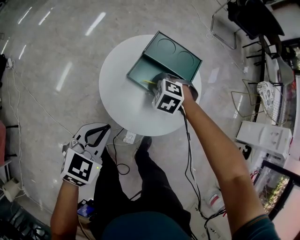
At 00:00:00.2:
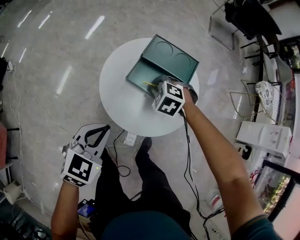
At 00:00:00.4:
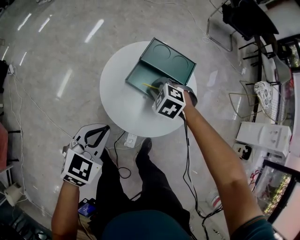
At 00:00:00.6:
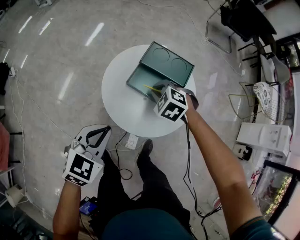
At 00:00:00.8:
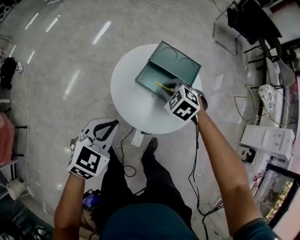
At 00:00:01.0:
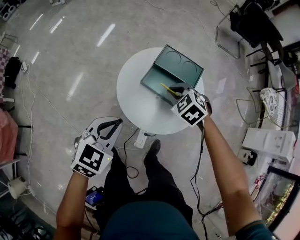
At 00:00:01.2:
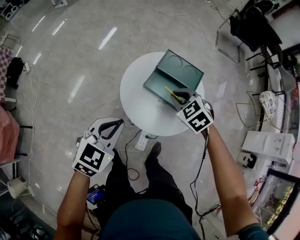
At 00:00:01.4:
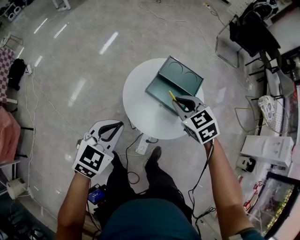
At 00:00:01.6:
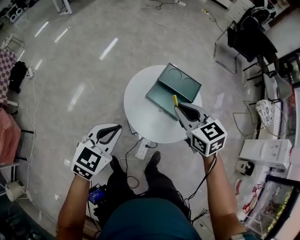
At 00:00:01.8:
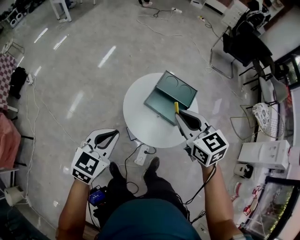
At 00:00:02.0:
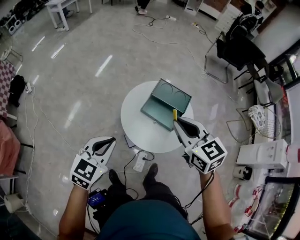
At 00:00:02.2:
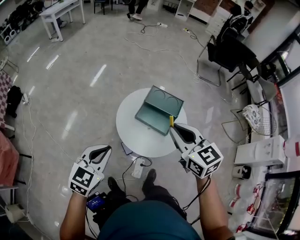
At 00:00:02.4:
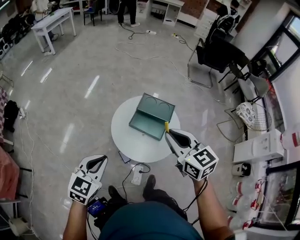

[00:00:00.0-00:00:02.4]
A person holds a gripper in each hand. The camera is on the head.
00:00:00.0 to 00:00:01.2: The left gripper is displaced upward by roughly 10 cm; the right gripper shifts some 15 cm upward, and turns by roughly 30 degrees.
00:00:01.2 to 00:00:02.4: The right gripper travels upward and backward by approximately 30 cm, and tilts its fingers about 30 degrees upward; the left gripper goes approximately 15 cm upward and backward.

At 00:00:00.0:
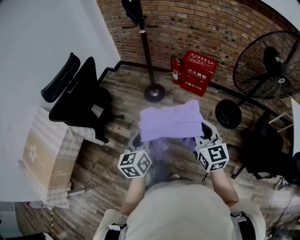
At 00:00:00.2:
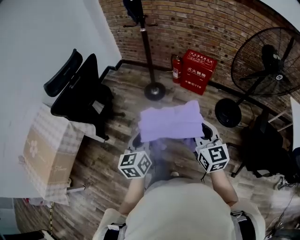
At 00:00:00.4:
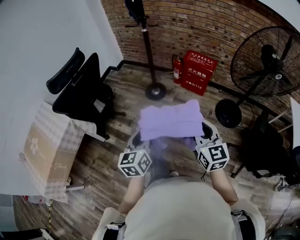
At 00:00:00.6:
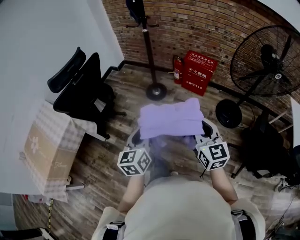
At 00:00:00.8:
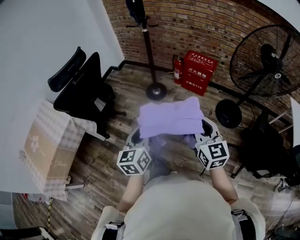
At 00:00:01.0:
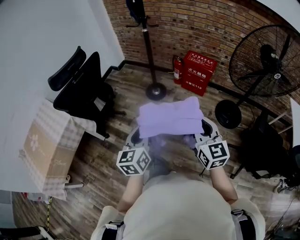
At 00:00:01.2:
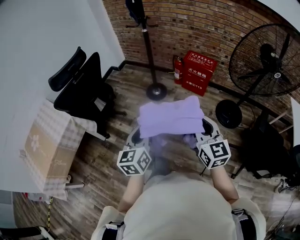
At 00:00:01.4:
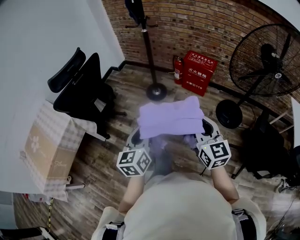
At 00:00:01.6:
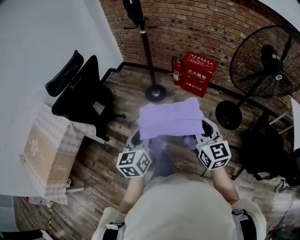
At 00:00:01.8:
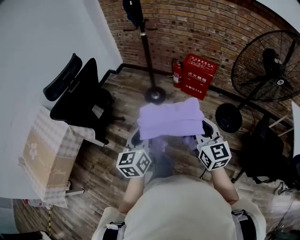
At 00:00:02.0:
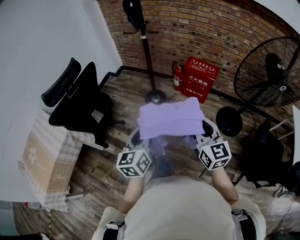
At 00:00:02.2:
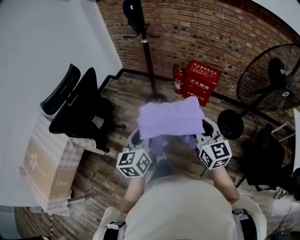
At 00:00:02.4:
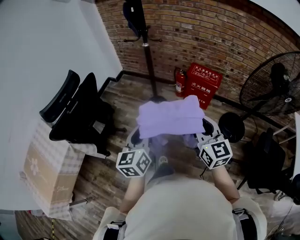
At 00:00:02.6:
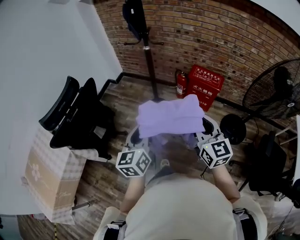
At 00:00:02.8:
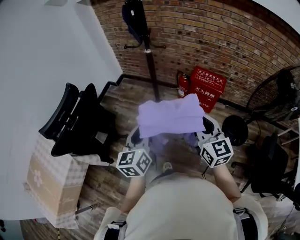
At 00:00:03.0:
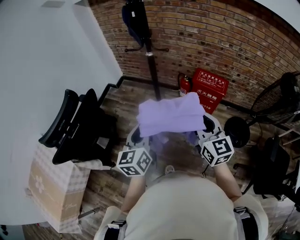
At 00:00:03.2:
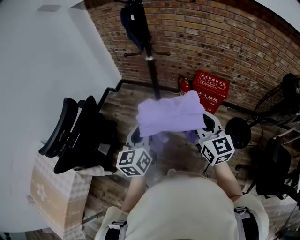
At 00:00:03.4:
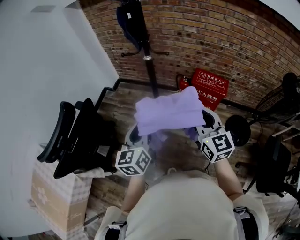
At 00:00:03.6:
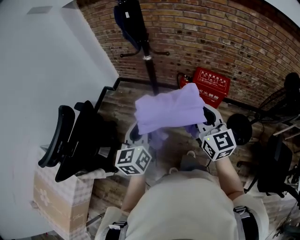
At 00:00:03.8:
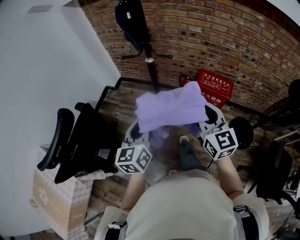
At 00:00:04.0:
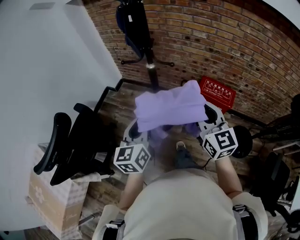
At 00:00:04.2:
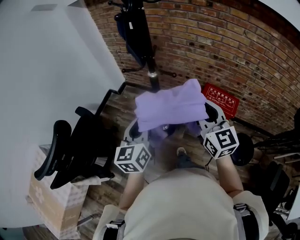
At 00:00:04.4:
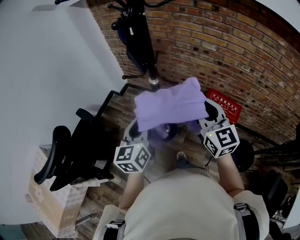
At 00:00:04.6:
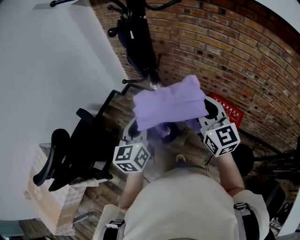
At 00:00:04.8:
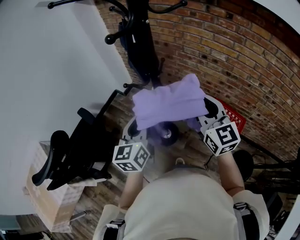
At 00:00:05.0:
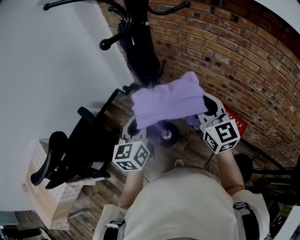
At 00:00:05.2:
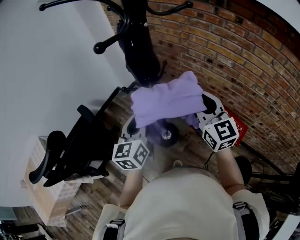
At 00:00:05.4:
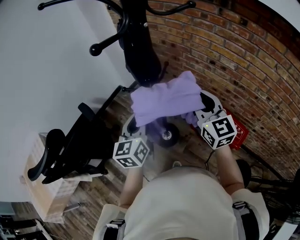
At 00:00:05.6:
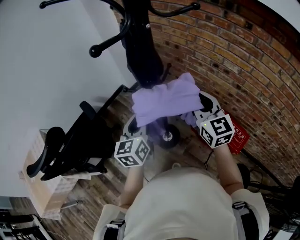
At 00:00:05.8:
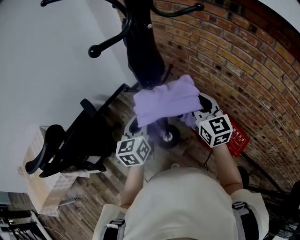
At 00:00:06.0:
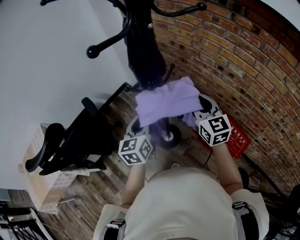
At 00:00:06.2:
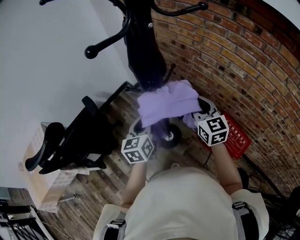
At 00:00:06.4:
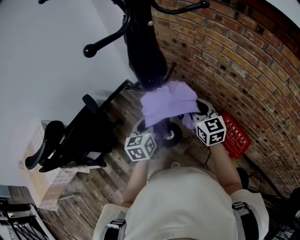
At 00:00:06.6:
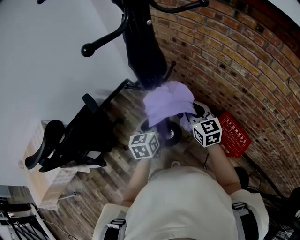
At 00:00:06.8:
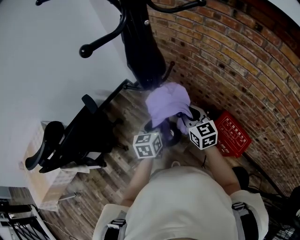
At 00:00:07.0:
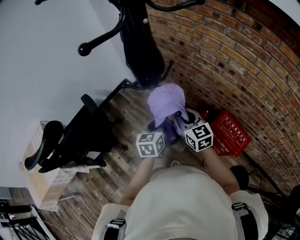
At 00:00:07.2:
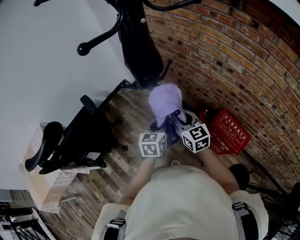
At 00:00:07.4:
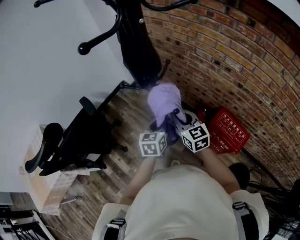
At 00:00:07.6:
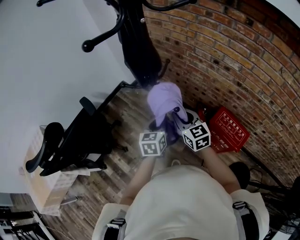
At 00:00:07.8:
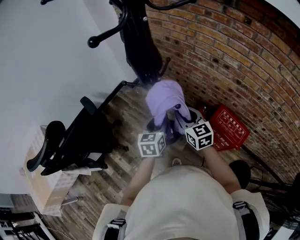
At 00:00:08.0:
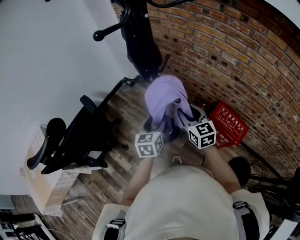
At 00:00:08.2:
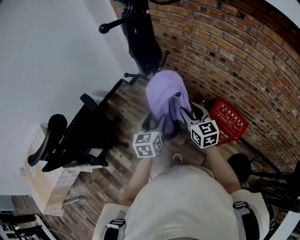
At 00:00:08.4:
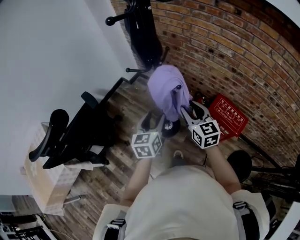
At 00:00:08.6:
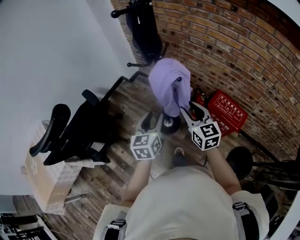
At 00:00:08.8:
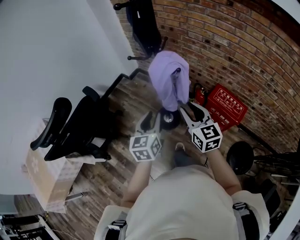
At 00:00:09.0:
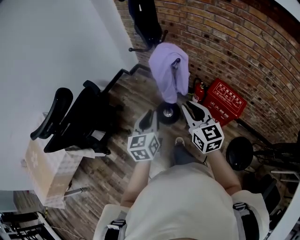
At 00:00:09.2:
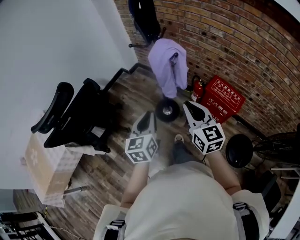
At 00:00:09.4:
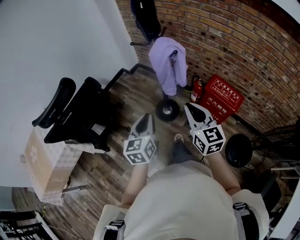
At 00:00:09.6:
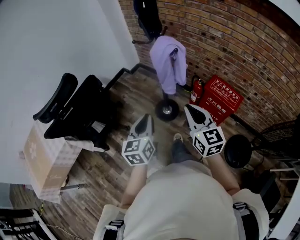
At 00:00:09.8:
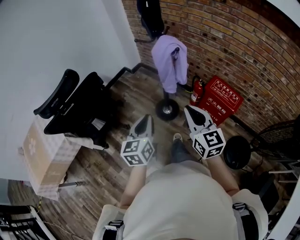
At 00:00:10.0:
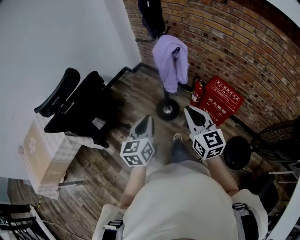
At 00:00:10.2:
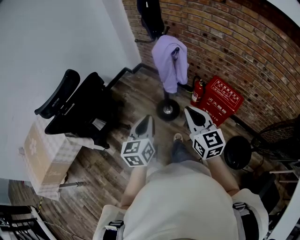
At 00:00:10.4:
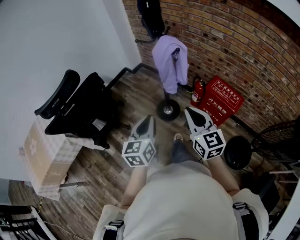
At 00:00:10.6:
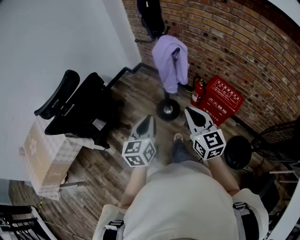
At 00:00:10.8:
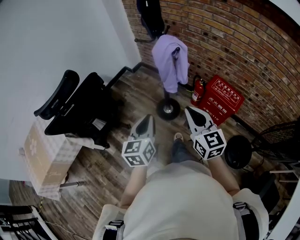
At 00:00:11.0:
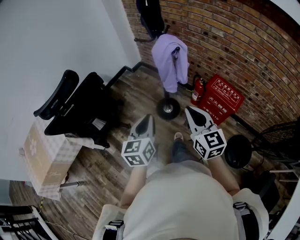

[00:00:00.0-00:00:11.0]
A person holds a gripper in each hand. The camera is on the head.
00:00:01.6 to 00:00:03.2: Both grippers move forward, approximately 35 cm.
00:00:03.2 to 00:00:04.8: Both grippers travel together forward, about 30 cm.
00:00:04.8 to 00:00:06.2: The left gripper is displaced downward and forward by some 10 cm. The right gripper travels forward and downward by about 15 cm.
00:00:06.2 to 00:00:07.8: The left gripper travels to the right and downward by roughly 10 cm, and opens; the right gripper is displaced downward and backward by roughly 10 cm.
00:00:07.8 to 00:00:09.4: The grippers both shift backward by about 25 cm. The right gripper closes up. Meanwhile the left gripper closes up.
00:00:09.4 to 00:00:11.0: The grippers move only a little.

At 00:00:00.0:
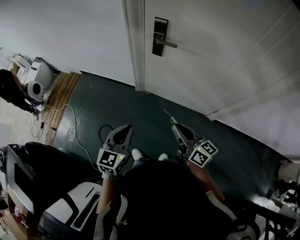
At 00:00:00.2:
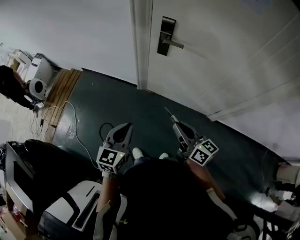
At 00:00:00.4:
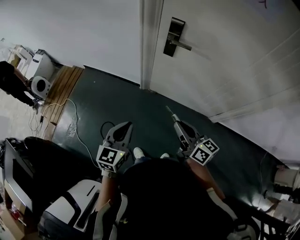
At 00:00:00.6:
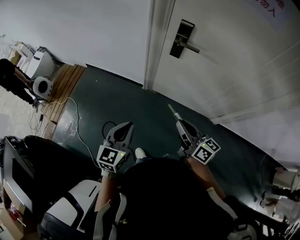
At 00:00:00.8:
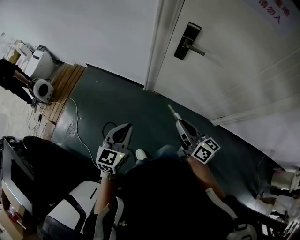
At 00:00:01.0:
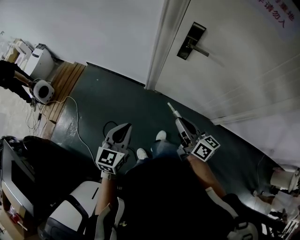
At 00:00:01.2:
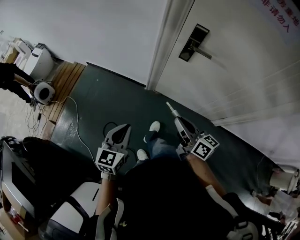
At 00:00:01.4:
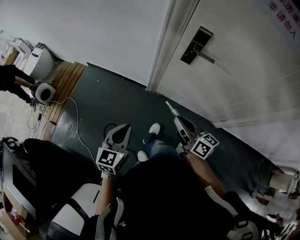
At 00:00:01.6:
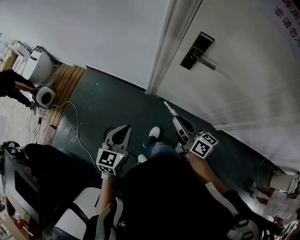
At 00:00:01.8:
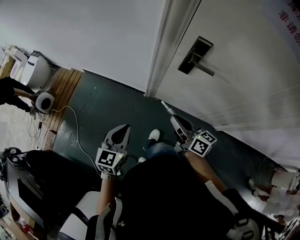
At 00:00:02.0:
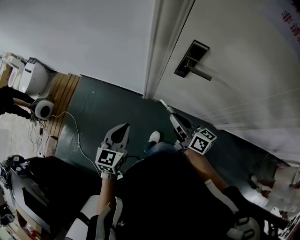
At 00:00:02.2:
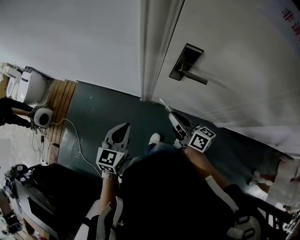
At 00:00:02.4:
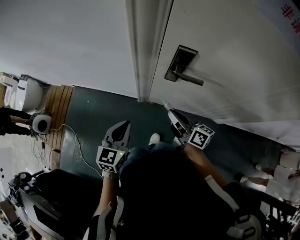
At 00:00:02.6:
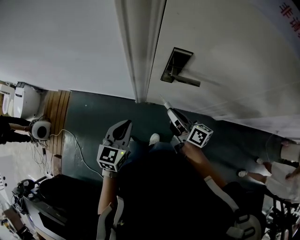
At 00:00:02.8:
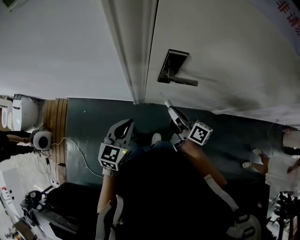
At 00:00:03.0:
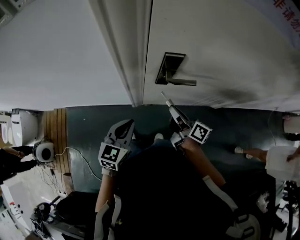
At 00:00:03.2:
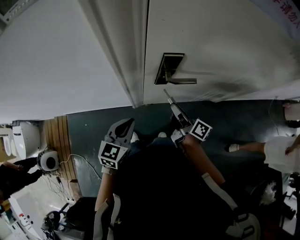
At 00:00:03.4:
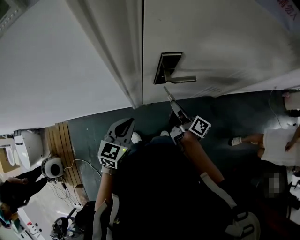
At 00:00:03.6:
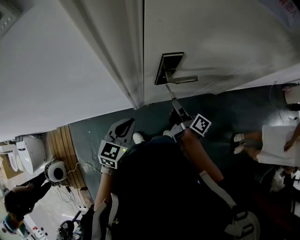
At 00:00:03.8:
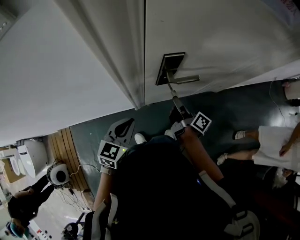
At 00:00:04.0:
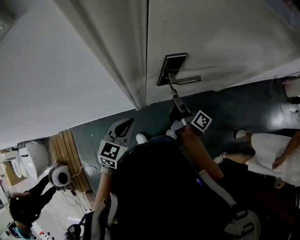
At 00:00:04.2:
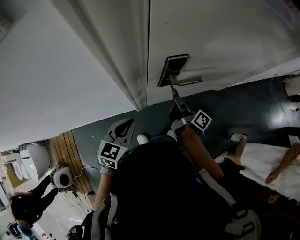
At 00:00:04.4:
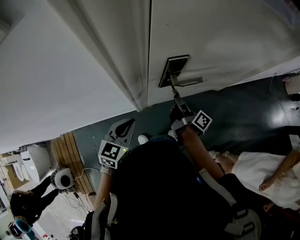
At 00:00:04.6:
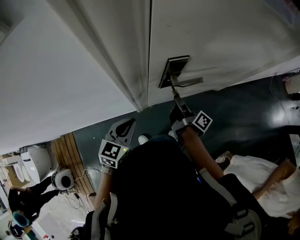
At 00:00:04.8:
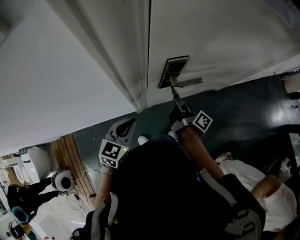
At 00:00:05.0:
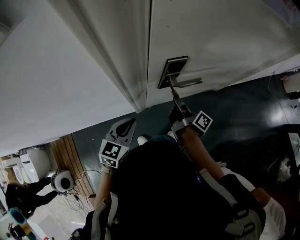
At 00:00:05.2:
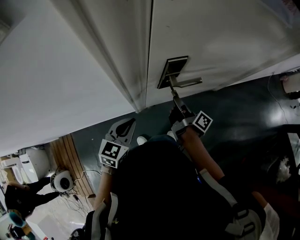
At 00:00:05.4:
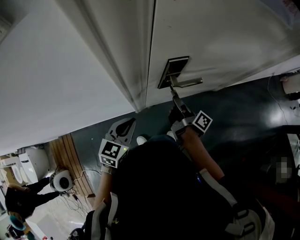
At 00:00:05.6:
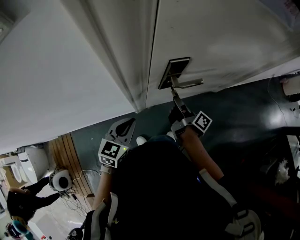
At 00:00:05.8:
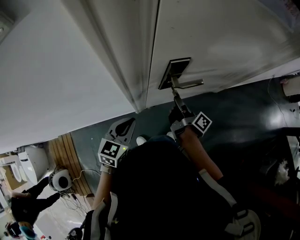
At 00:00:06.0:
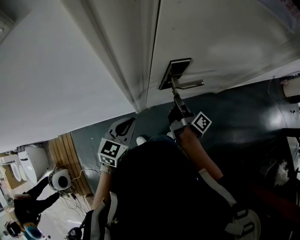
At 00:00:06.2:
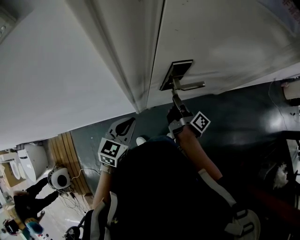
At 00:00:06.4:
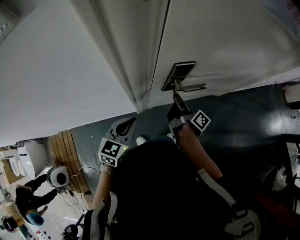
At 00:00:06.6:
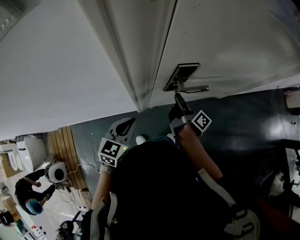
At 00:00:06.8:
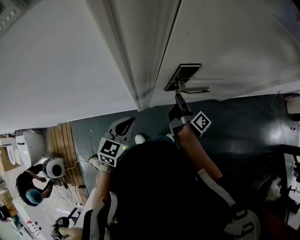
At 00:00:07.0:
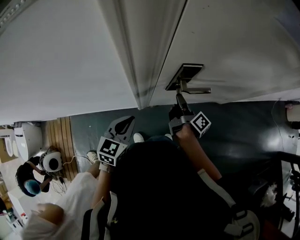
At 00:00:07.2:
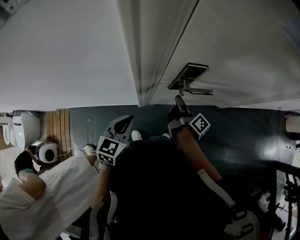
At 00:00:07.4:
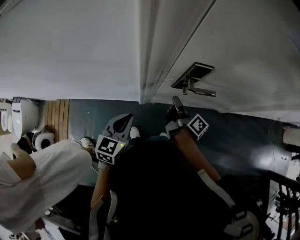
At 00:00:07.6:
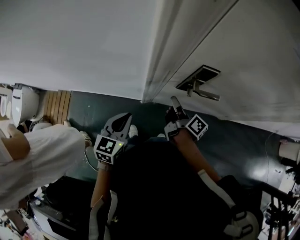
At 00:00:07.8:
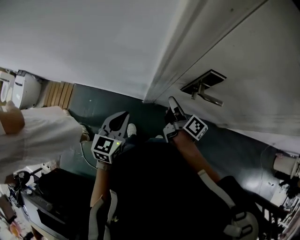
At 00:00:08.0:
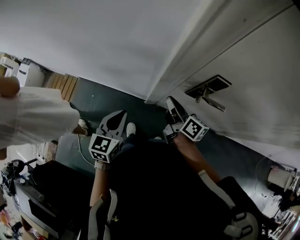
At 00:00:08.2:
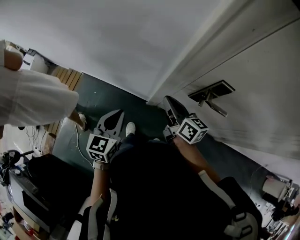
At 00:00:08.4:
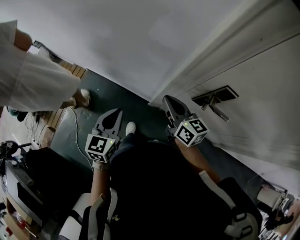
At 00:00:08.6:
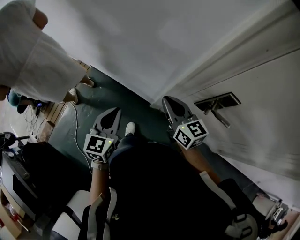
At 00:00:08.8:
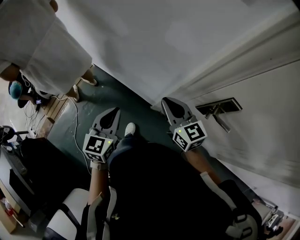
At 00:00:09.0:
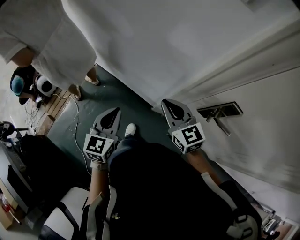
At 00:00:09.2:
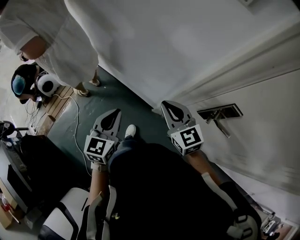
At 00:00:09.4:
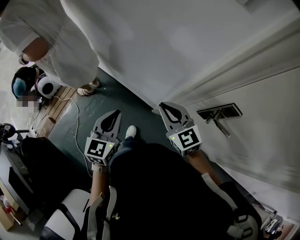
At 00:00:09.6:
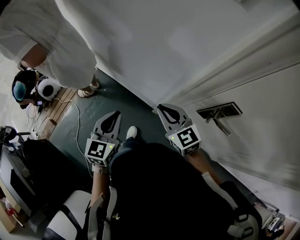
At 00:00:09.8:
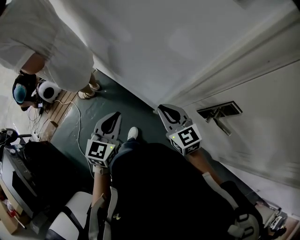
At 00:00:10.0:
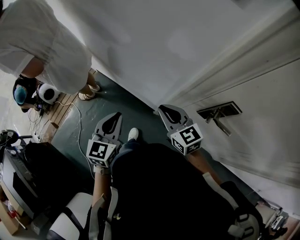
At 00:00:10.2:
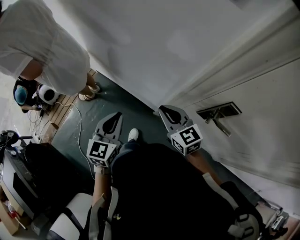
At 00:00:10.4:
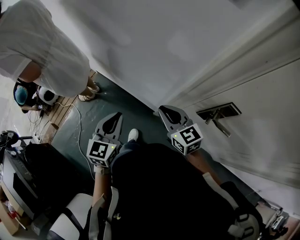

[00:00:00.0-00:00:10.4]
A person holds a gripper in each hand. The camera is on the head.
00:00:00.0 to 00:00:01.4: Both grippers move to the left and forward, roughly 20 cm.
00:00:01.4 to 00:00:03.0: The right gripper moves some 25 cm, and rotates about 40 degrees. The left gripper moves about 30 cm, and changes its angle by roughly 30 degrees.
00:00:03.0 to 00:00:04.4: The right gripper goes about 10 cm forward and downward, and changes its angle by about 30 degrees; the left gripper moves forward and to the left, some 10 cm.
00:00:04.4 to 00:00:06.0: The grippers move only a little.
00:00:06.0 to 00:00:07.4: The right gripper travels to the left by about 5 cm. The left gripper moves approximately 5 cm, and swivels about 20 degrees.
00:00:07.4 to 00:00:09.0: The right gripper shifts by about 30 cm, and rolls counterclockwise, seen from behind, by about 90 degrees, while the left gripper changes place by about 20 cm, and changes its angle by roughly 40 degrees.
00:00:09.0 to 00:00:10.4: The grippers make only small movements.
